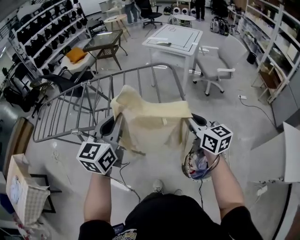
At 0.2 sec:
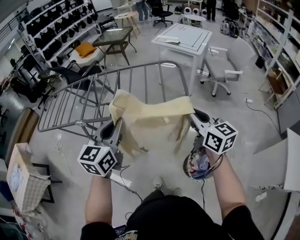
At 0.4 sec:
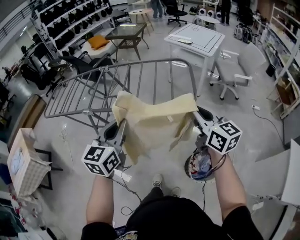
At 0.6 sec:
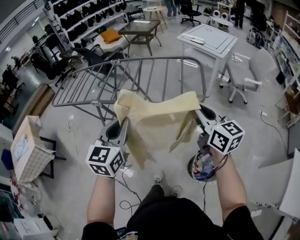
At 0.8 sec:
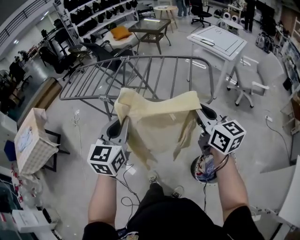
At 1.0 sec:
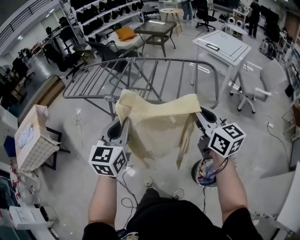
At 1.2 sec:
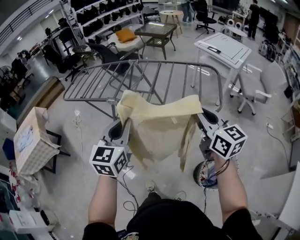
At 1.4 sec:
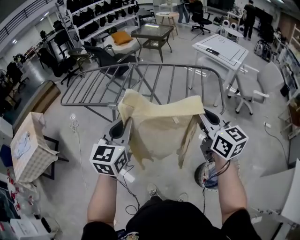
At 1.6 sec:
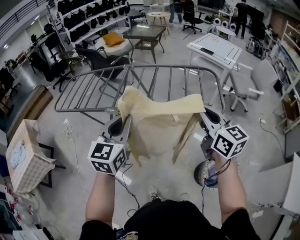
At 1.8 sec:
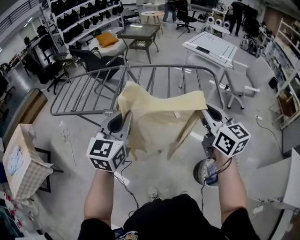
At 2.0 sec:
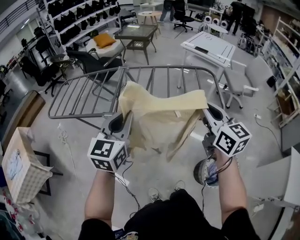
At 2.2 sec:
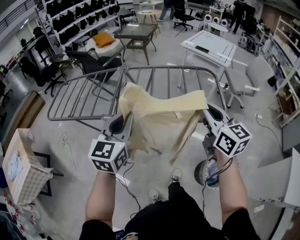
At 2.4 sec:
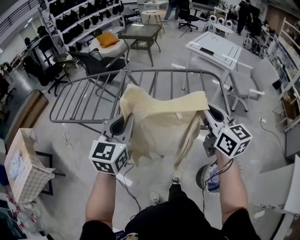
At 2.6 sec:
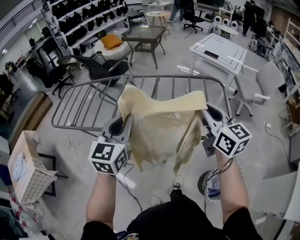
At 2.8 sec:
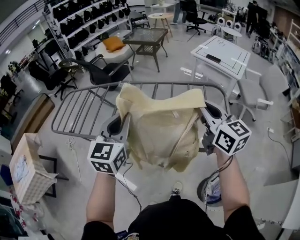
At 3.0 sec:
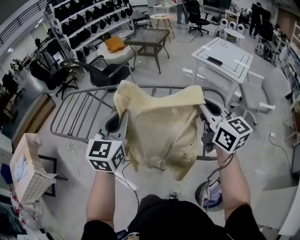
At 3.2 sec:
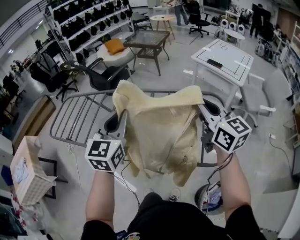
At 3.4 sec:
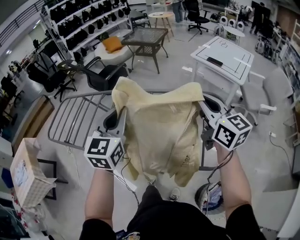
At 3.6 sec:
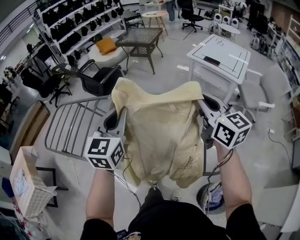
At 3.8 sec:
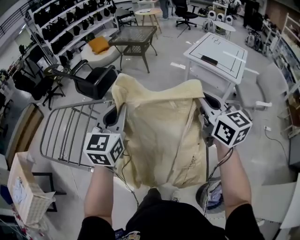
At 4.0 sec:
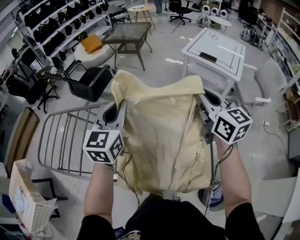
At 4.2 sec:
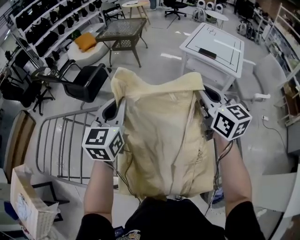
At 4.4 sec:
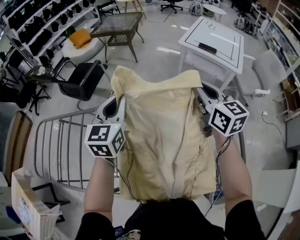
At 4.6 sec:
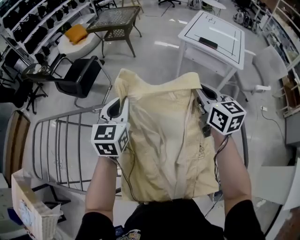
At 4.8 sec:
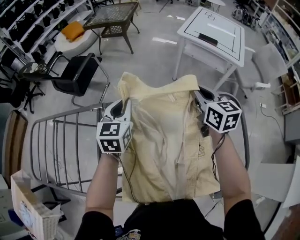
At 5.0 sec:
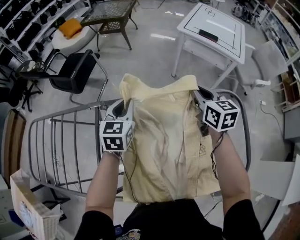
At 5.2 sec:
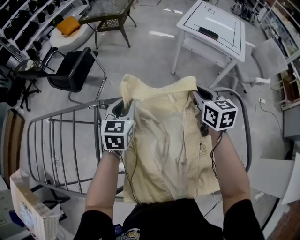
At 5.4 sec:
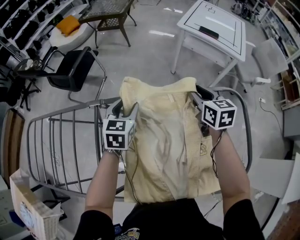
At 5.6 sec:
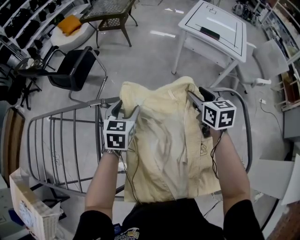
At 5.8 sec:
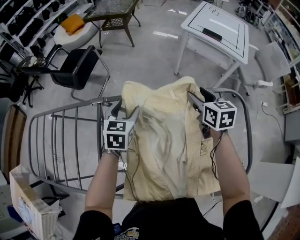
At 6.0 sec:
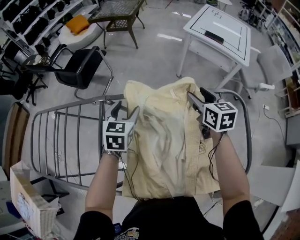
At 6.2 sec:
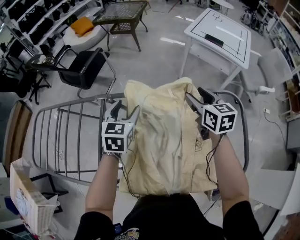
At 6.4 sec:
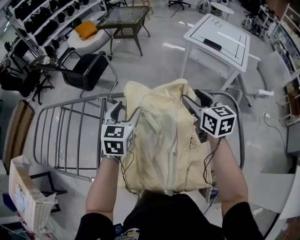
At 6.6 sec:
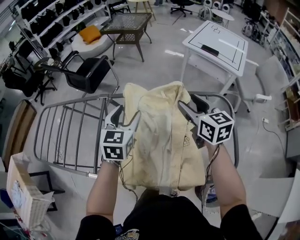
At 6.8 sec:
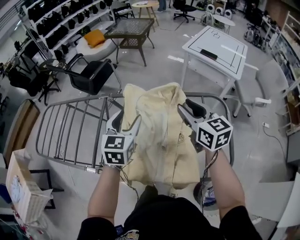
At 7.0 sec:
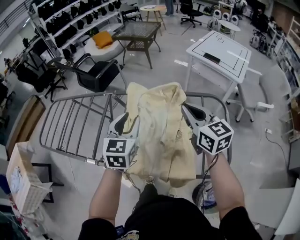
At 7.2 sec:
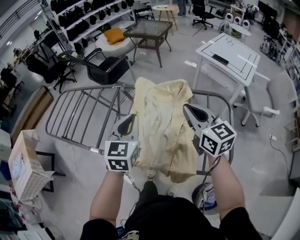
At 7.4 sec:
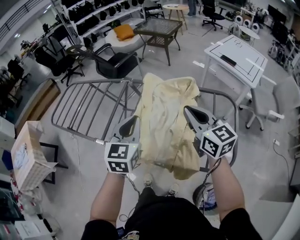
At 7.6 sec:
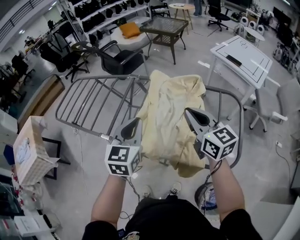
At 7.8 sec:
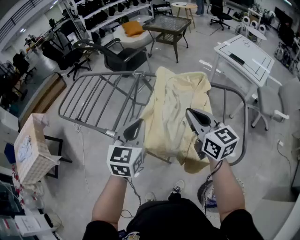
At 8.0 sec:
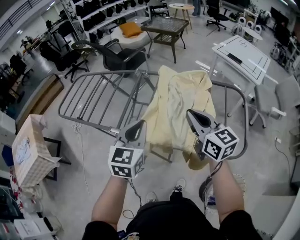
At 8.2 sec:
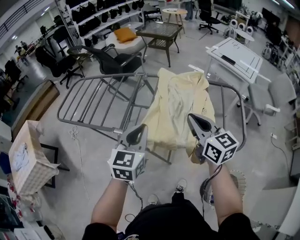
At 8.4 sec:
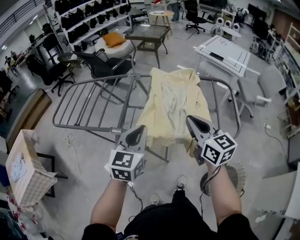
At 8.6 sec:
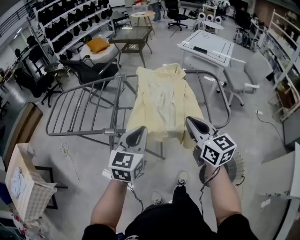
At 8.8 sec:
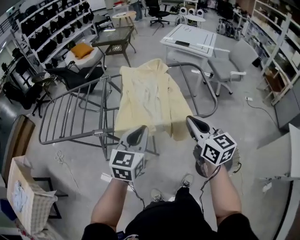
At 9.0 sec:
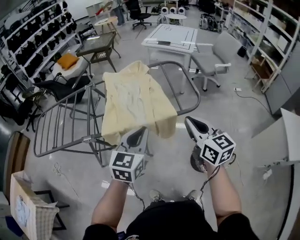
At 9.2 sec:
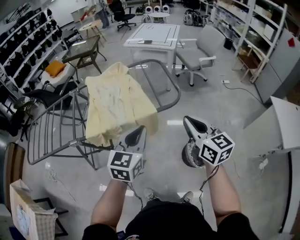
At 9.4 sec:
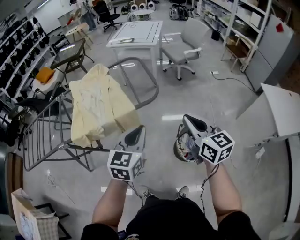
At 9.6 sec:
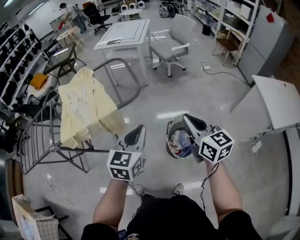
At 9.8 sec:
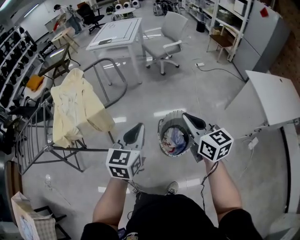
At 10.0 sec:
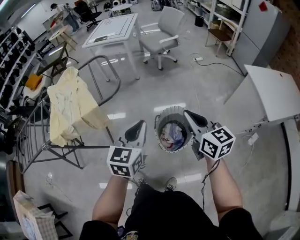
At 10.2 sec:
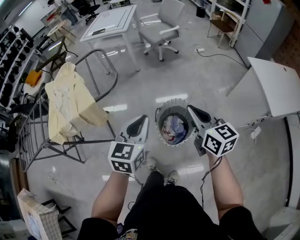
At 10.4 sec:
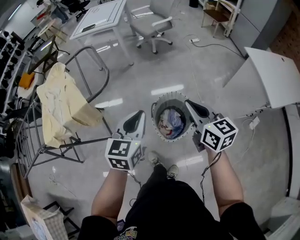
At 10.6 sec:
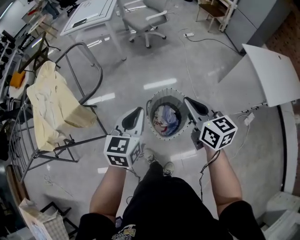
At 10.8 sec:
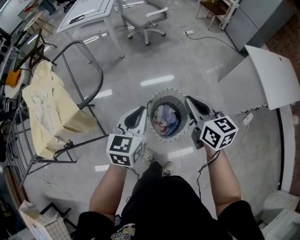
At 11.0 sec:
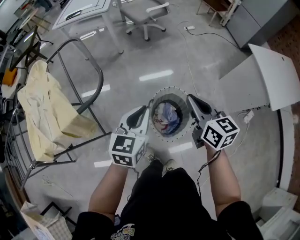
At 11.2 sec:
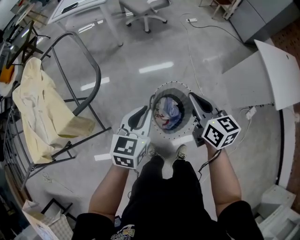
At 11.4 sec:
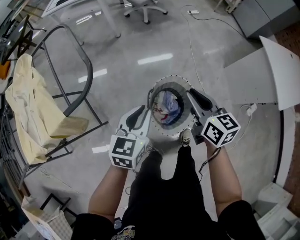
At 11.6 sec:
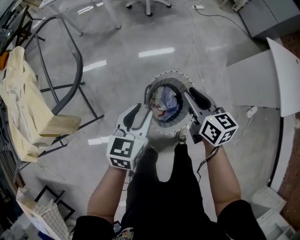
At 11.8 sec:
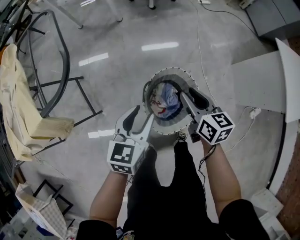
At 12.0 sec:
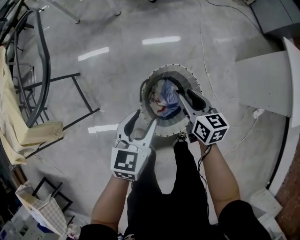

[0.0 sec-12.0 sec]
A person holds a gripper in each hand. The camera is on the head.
0.0 sec to 1.6 sec: The left gripper heads to the left, covering about 20 cm. The right gripper moves to the left and upward, approximately 25 cm.
1.6 sec to 3.0 sec: Both grippers travel together forward, some 25 cm.
3.0 sec to 4.4 sec: The two grippers go roughly 30 cm forward.
4.4 sec to 6.0 sec: Both grippers move downward, about 15 cm. The left gripper swivels some 20 degrees, and opens. Meanwhile the right gripper swivels some 20 degrees, and opens up.
6.0 sec to 7.6 sec: The two grippers go approximately 30 cm backward and upward. The right gripper changes its angle by roughly 40 degrees, and closes, while the left gripper rotates about 20 degrees, and closes up.
7.6 sec to 9.0 sec: The left gripper ends up some 25 cm from where it was, and turns by about 40 degrees. Meanwhile the right gripper shifts by about 30 cm, and rotates approximately 30 degrees.
9.0 sec to 10.4 sec: The pair of grippers is taken to the right, roughly 40 cm. The right gripper rotates about 20 degrees.
10.4 sec to 12.0 sec: The two grippers go some 35 cm downward and forward. The right gripper rotates about 20 degrees, and opens up. Meanwhile the left gripper opens its fingers.

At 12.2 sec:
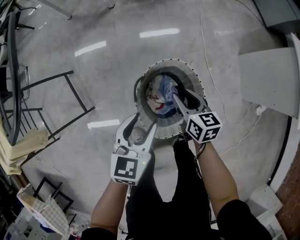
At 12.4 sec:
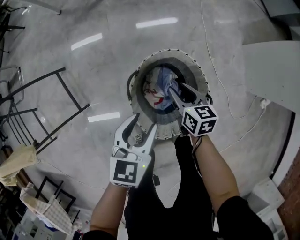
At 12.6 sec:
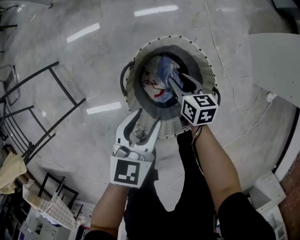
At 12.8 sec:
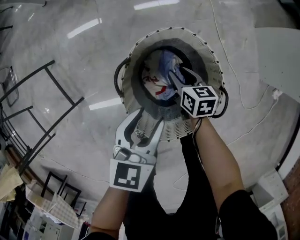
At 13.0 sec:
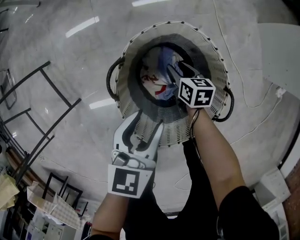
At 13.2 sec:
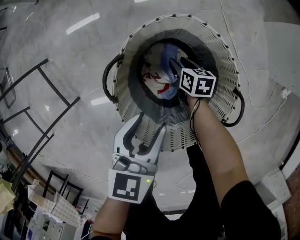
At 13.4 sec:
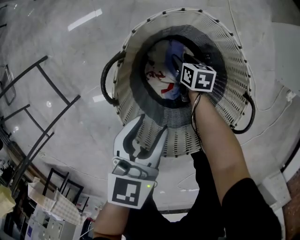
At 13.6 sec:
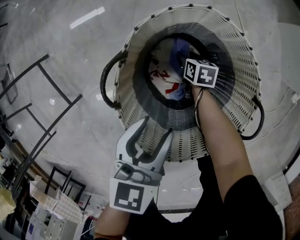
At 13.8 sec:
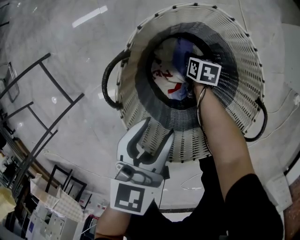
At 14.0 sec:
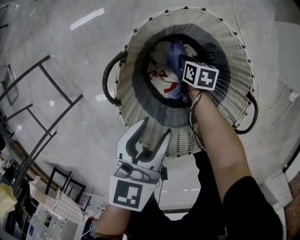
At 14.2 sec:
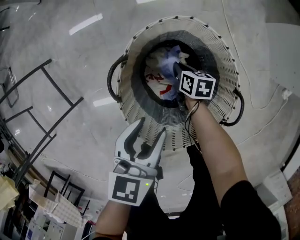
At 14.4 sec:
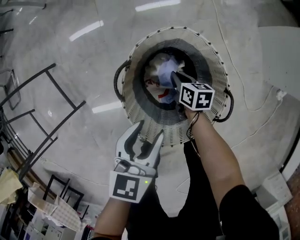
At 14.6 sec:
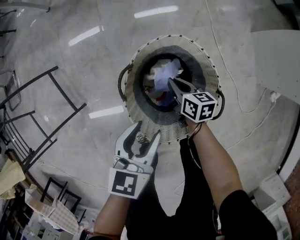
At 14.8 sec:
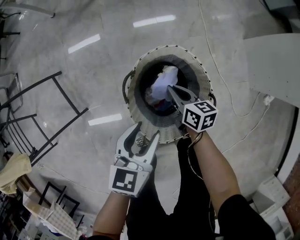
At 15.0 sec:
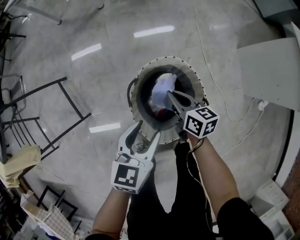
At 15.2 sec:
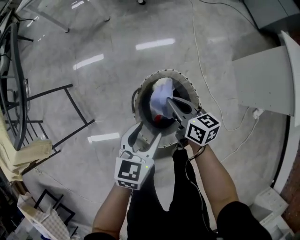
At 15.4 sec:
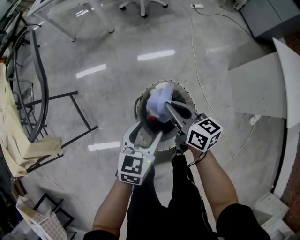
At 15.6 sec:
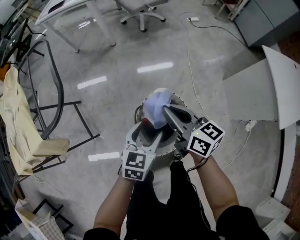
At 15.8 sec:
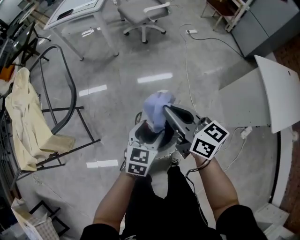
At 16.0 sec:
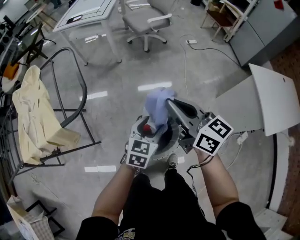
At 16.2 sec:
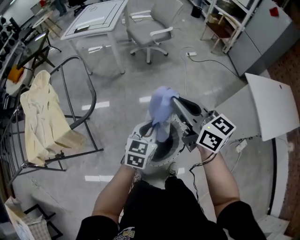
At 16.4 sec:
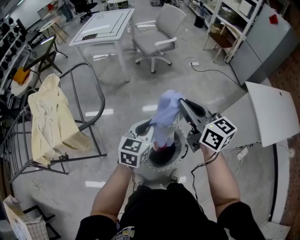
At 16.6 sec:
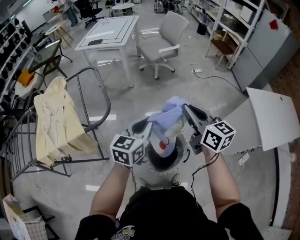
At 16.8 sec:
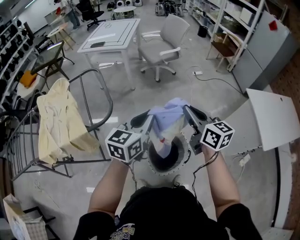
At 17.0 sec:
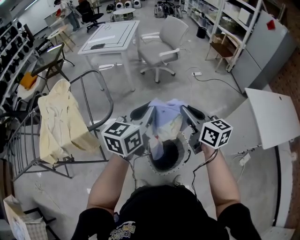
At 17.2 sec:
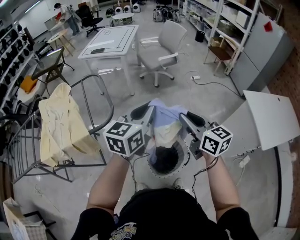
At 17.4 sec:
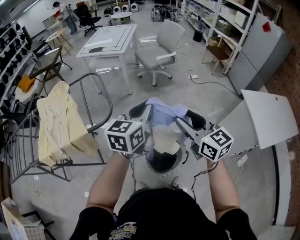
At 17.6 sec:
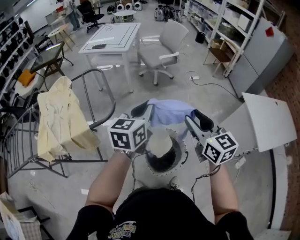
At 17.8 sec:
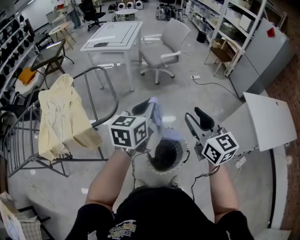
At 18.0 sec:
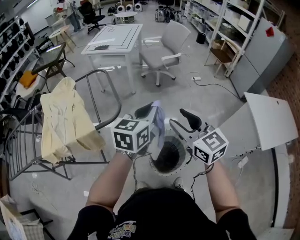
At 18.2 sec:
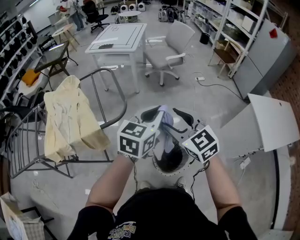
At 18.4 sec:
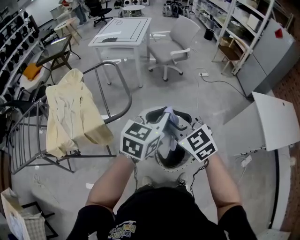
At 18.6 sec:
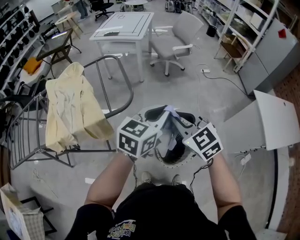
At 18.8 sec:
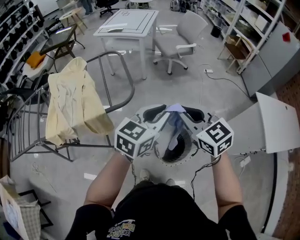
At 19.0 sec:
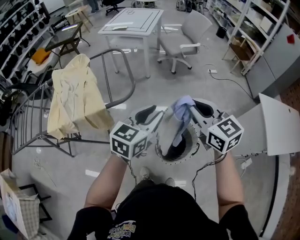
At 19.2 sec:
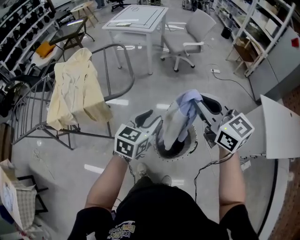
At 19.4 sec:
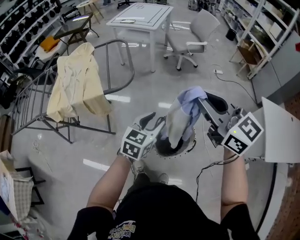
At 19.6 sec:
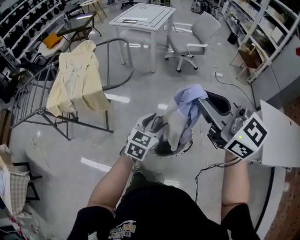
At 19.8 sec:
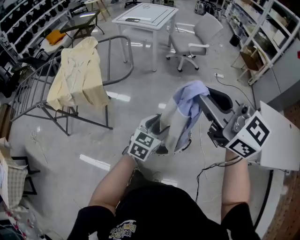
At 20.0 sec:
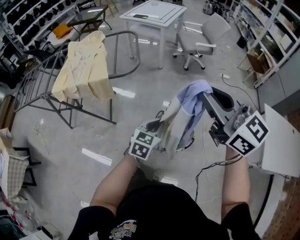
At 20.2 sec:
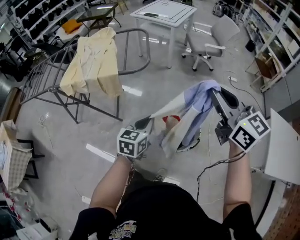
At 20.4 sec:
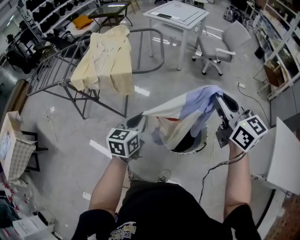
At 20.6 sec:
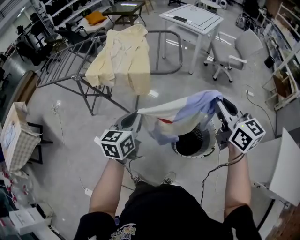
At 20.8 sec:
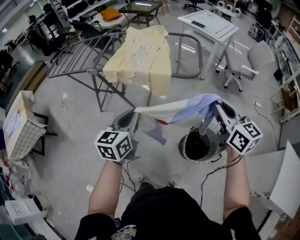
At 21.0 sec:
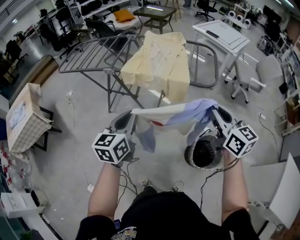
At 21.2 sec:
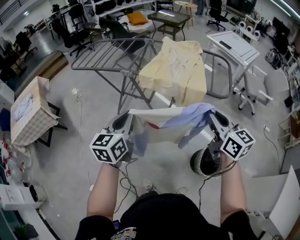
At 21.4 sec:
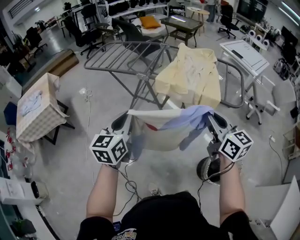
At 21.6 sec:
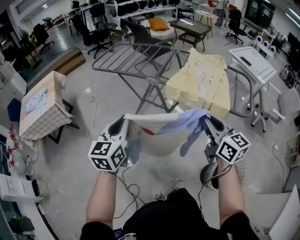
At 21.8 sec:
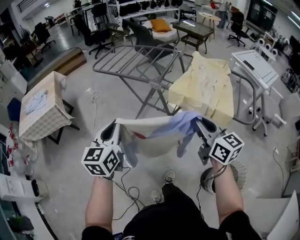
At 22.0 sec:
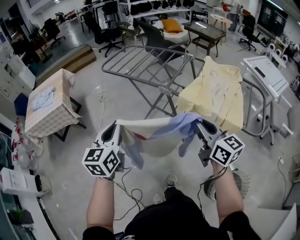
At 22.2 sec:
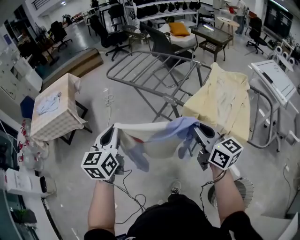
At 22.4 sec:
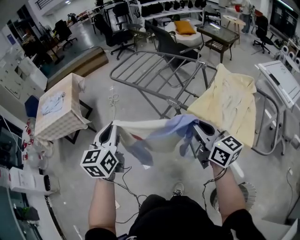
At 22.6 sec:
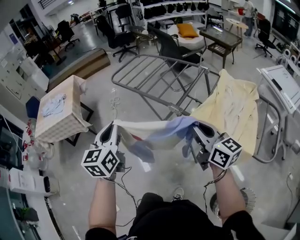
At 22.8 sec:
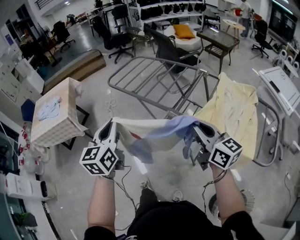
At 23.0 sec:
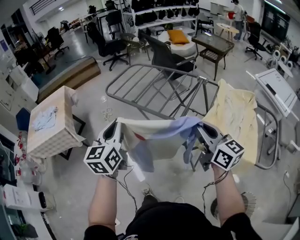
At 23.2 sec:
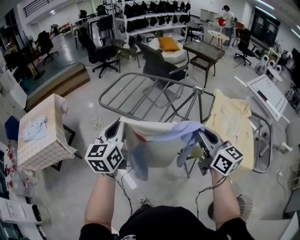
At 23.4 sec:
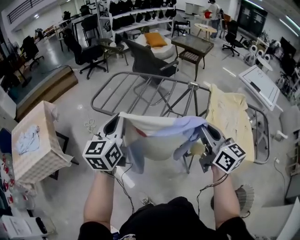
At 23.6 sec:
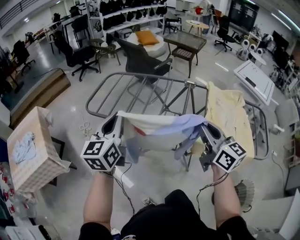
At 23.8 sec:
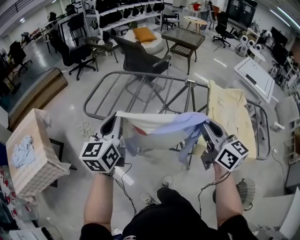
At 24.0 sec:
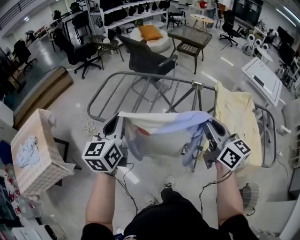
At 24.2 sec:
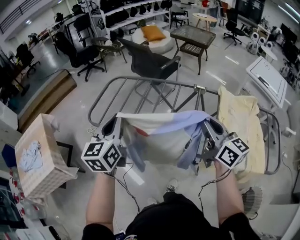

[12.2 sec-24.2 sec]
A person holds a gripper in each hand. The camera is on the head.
12.2 sec to 13.8 sec: The left gripper travels downward by some 25 cm, while the right gripper goes approximately 50 cm downward, turns by about 30 degrees, and closes up.
13.8 sec to 15.2 sec: The right gripper shifts roughly 50 cm upward, and angles its fingers upward, by roughly 40 degrees, while the left gripper shifts roughly 25 cm upward.
15.2 sec to 16.6 sec: Both grippers move upward, about 40 cm. The left gripper rotates approximately 20 degrees, and closes. The right gripper rotates approximately 30 degrees.
16.6 sec to 18.2 sec: The left gripper heads upward, covering roughly 10 cm, while the right gripper travels to the left and backward by approximately 15 cm, turns by some 40 degrees, and opens its fingers.
18.2 sec to 19.8 sec: The left gripper moves downward and backward, about 20 cm, and opens up. The right gripper heads upward, backward and to the right, covering approximately 20 cm, swivels roughly 30 degrees, and closes up.
19.8 sec to 21.2 sec: The left gripper changes place by about 60 cm, rotates approximately 60 degrees, and closes its fingers, while the right gripper changes place by roughly 40 cm, and rotates about 20 degrees.
21.2 sec to 22.6 sec: The right gripper changes place by about 35 cm, and rotates about 30 degrees; the left gripper shifts by about 30 cm, and swivels roughly 30 degrees.
22.6 sec to 24.2 sec: The left gripper ends up some 35 cm from where it was, and turns by roughly 20 degrees. The right gripper changes place by roughly 25 cm, and turns by approximately 20 degrees.
